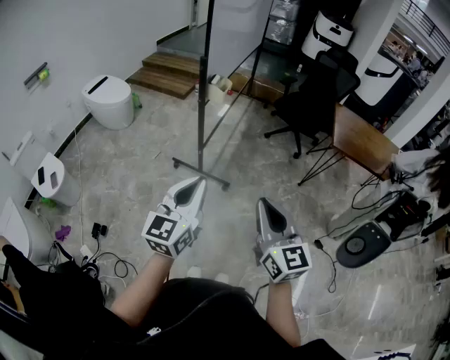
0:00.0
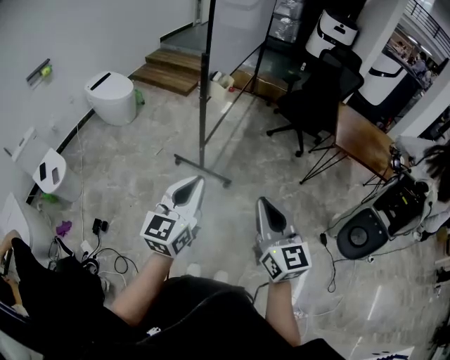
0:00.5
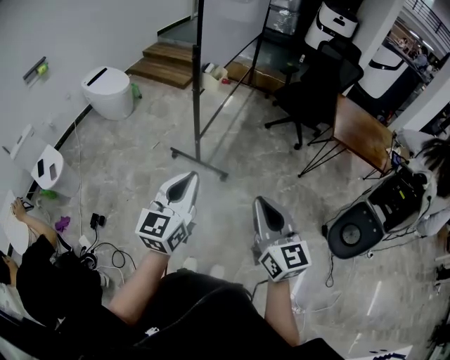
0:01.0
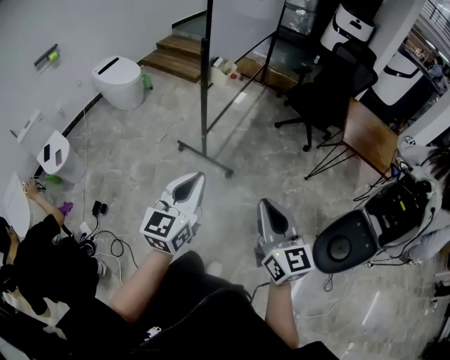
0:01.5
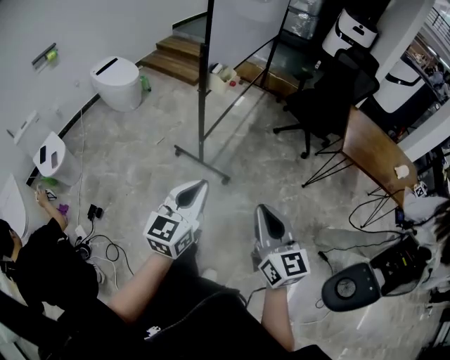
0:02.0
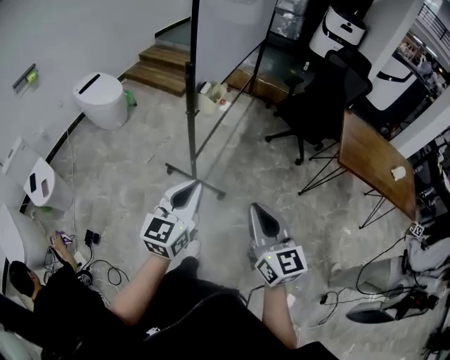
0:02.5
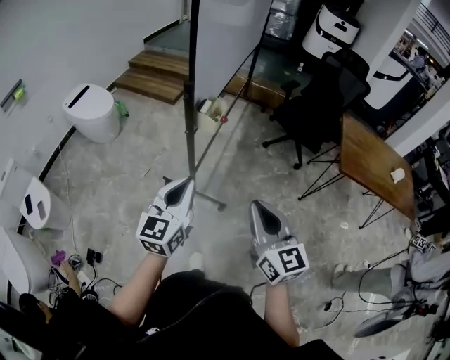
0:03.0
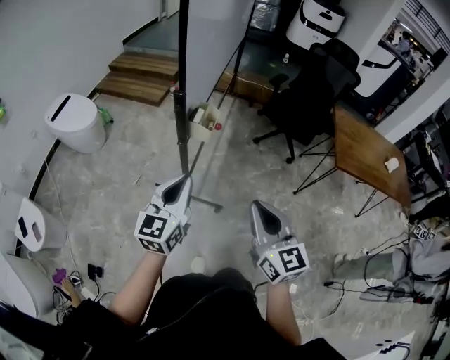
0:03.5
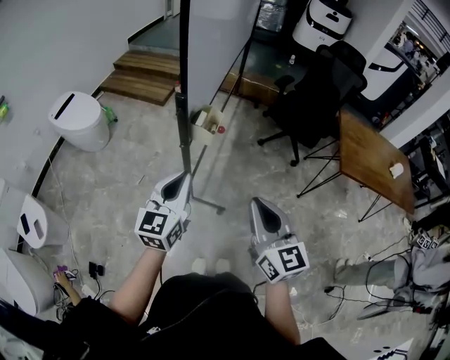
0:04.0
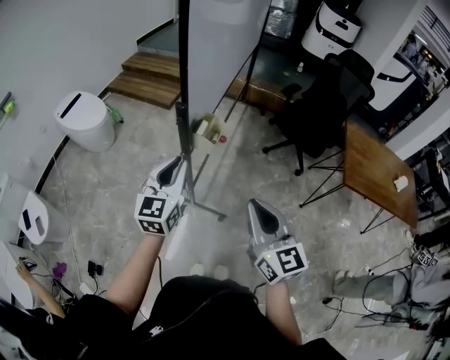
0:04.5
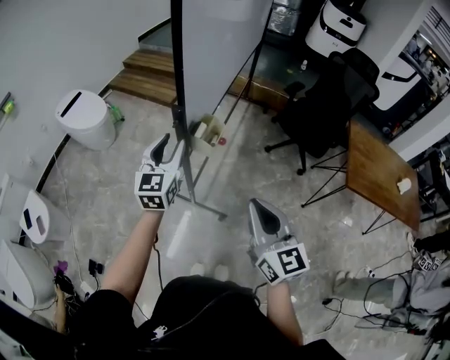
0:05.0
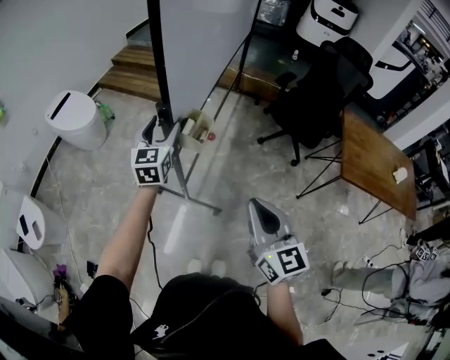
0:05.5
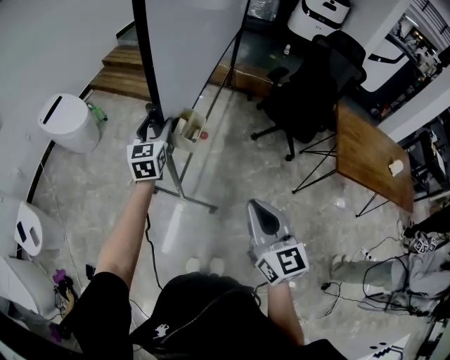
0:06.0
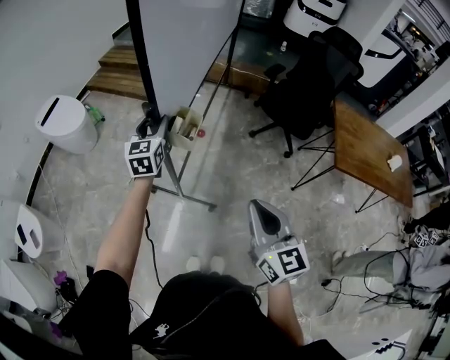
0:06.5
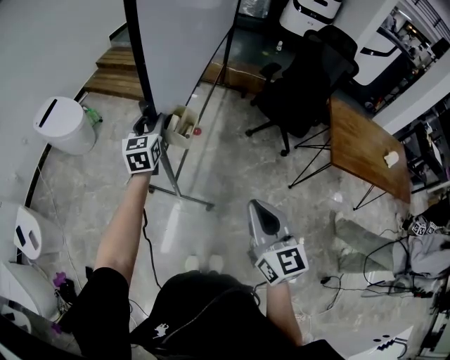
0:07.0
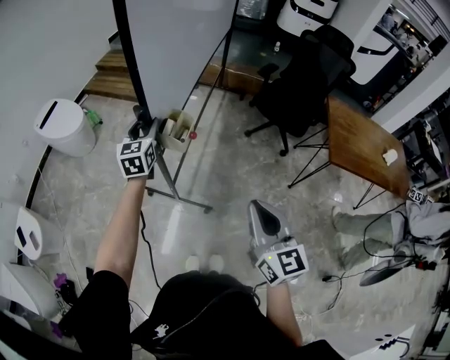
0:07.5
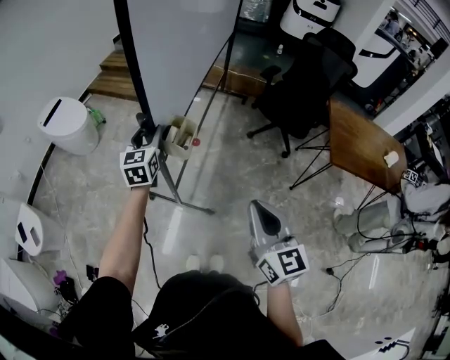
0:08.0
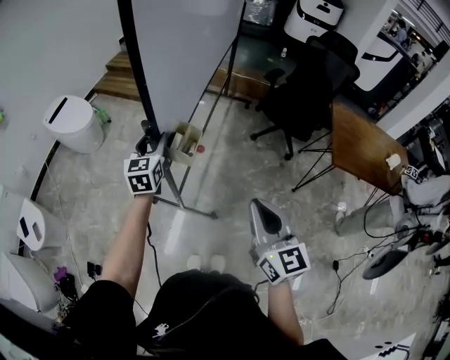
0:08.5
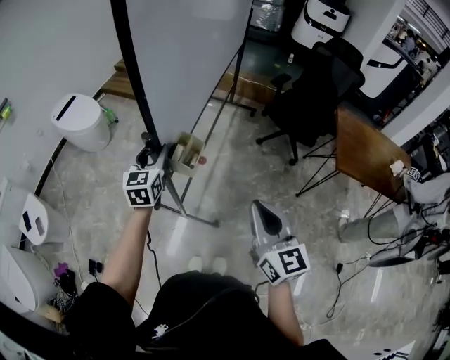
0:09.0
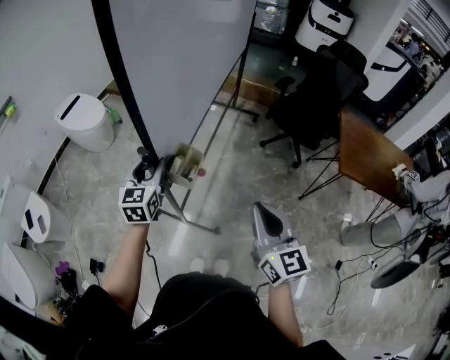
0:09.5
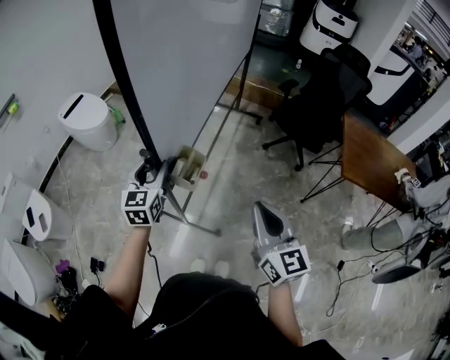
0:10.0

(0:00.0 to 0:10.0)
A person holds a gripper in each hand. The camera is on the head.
0:00.0 - 0:02.0: The grippers both shift to the right by about 5 cm.
0:02.0 - 0:04.0: Both grippers travel together forward, some 30 cm.
0:04.0 - 0:06.0: The left gripper moves forward, approximately 25 cm, and opens its fingers; the right gripper goes approximately 5 cm forward.
0:06.0 - 0:08.0: Both grippers travel together backward, about 5 cm.
0:08.0 - 0:10.0: The left gripper goes about 15 cm backward.

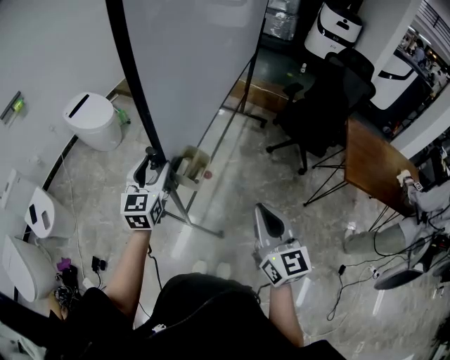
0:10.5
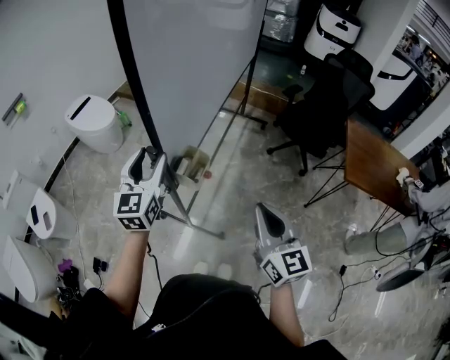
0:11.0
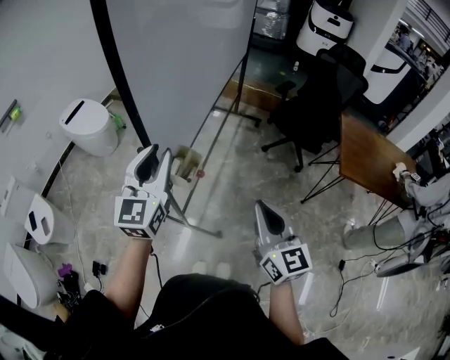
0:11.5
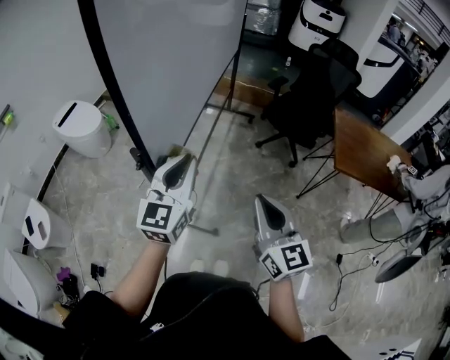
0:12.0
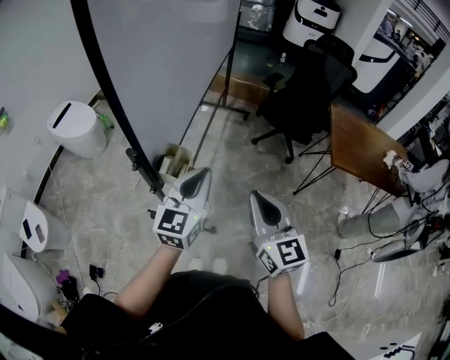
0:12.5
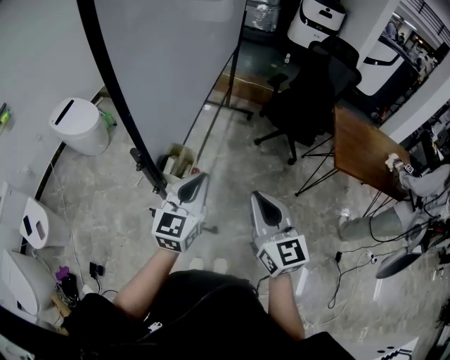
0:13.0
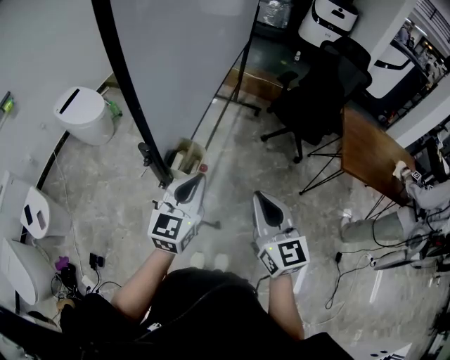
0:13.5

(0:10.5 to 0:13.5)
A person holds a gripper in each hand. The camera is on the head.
0:10.5 - 0:12.0: The left gripper shifts about 15 cm to the right and upward, and closes up.
0:12.0 - 0:13.5: The left gripper goes approximately 5 cm downward.

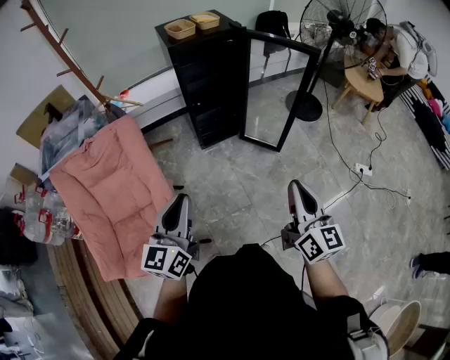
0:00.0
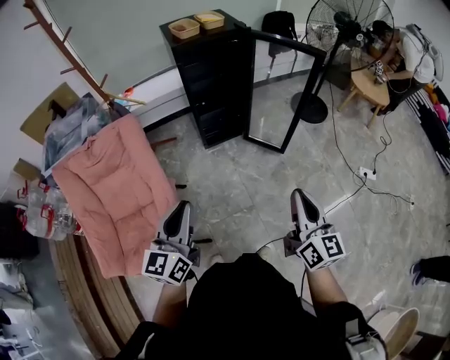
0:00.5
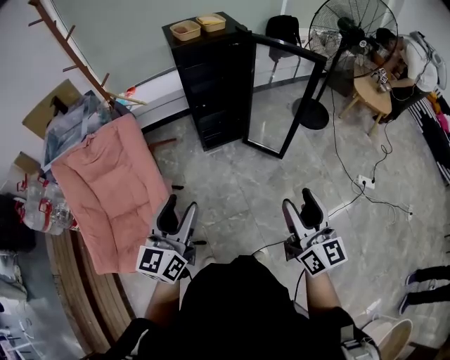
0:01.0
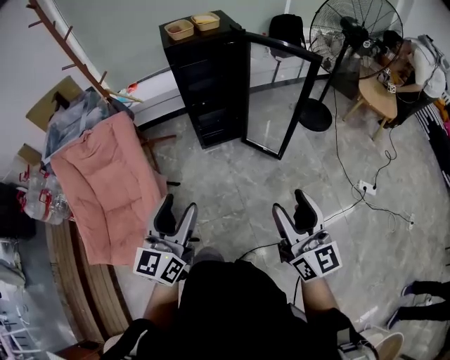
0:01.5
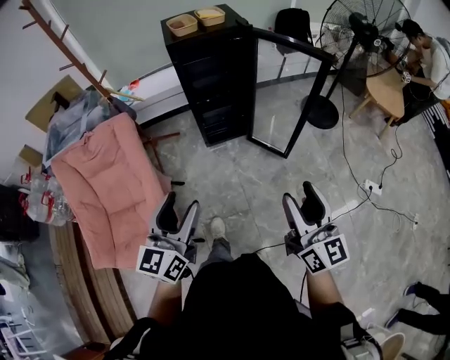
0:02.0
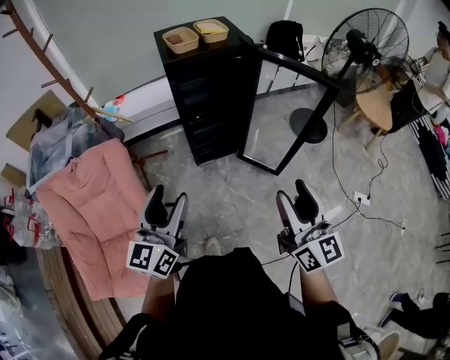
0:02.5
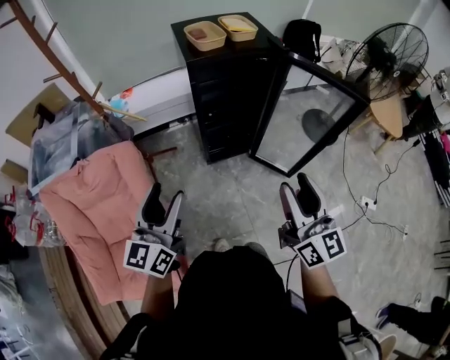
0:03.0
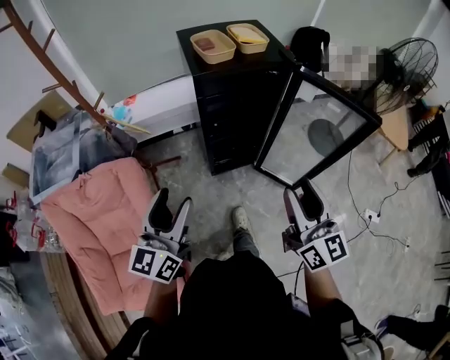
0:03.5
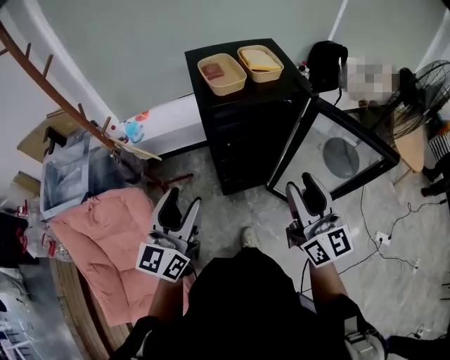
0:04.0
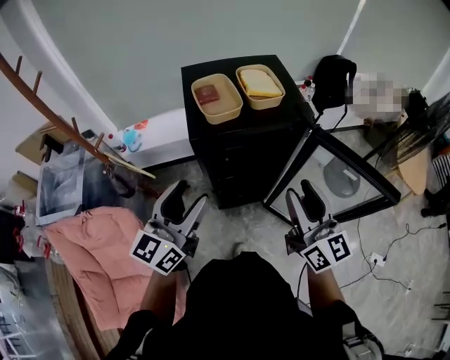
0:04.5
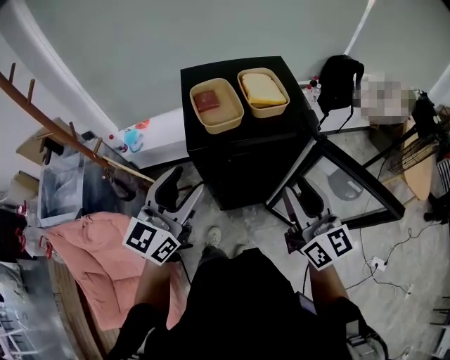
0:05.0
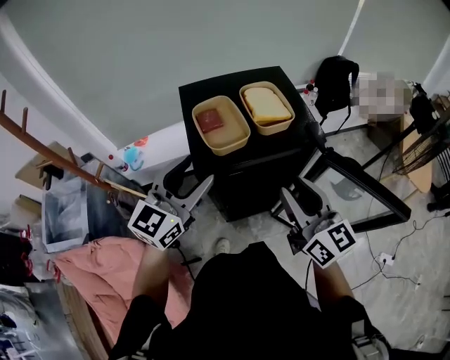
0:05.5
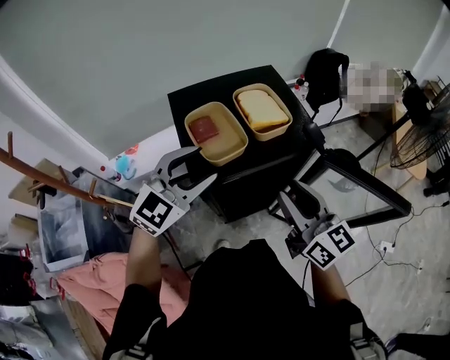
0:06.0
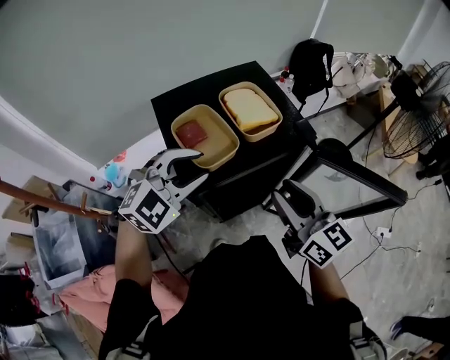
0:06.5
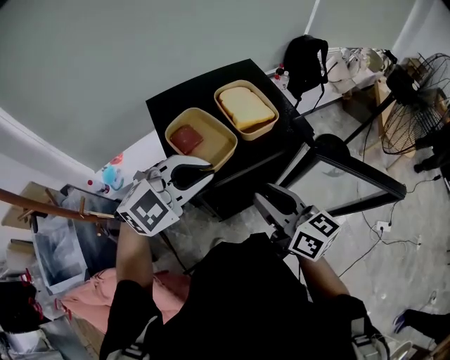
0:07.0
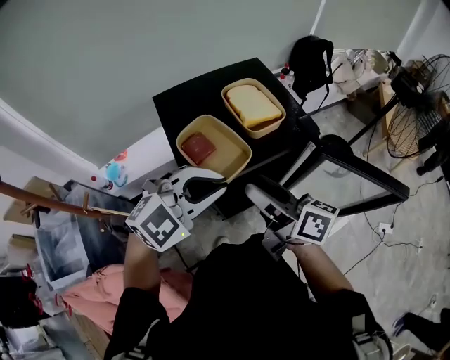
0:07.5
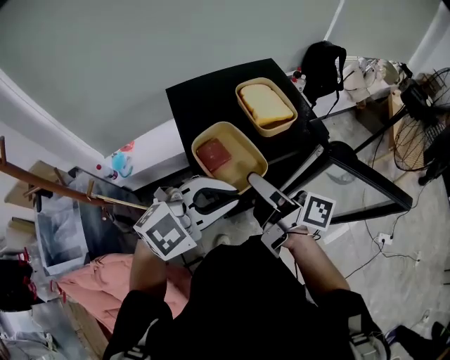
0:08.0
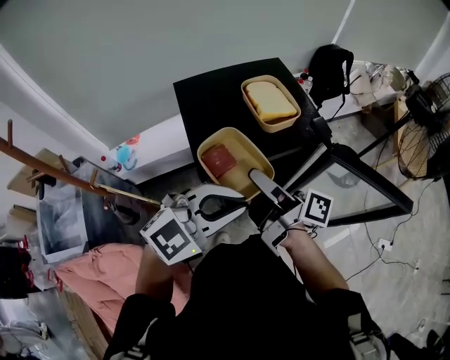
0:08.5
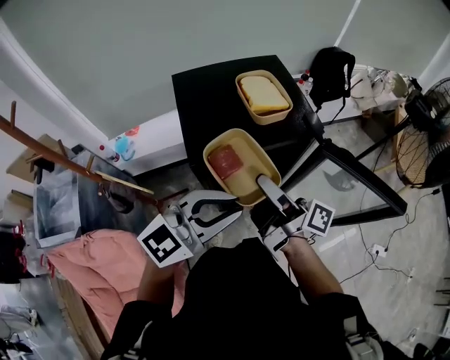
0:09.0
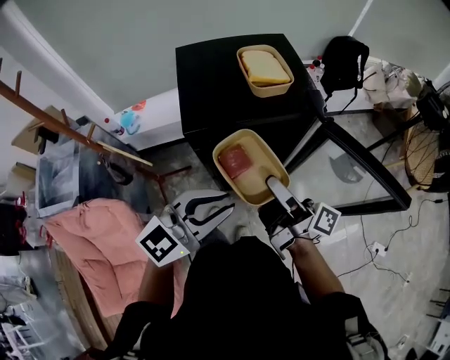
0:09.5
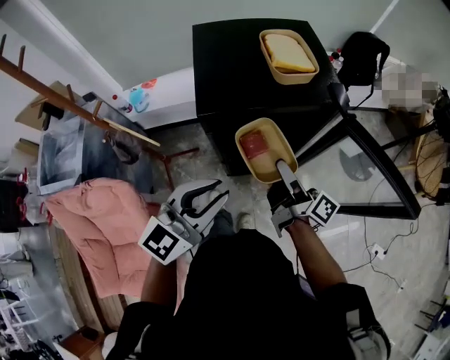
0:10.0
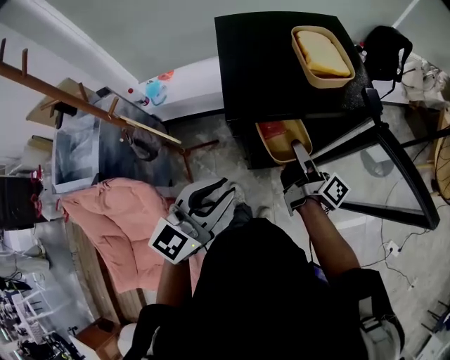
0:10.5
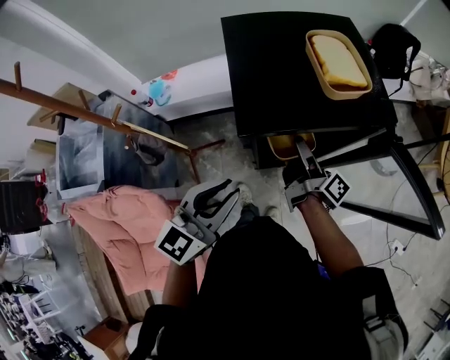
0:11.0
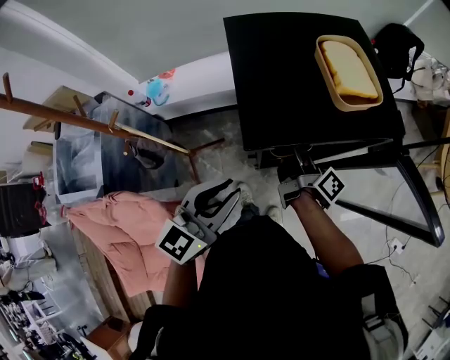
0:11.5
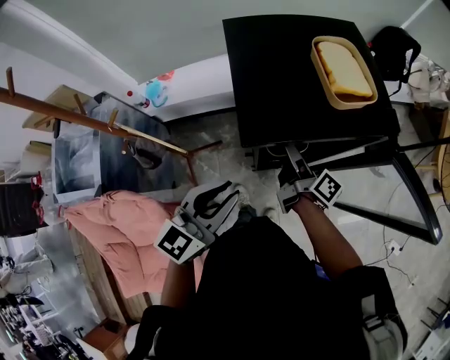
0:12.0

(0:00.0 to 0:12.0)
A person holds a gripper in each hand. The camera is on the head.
0:00.0 - 0:02.0: The two grippers go approximately 5 cm to the right. The left gripper opens its fingers. Meanwhile the right gripper opens.
0:02.0 - 0:04.0: The two grippers go roughly 35 cm forward.
0:04.0 - 0:06.0: The right gripper moves forward, about 20 cm. The left gripper goes some 30 cm forward, and rotates about 50 degrees.
0:06.0 - 0:08.0: The right gripper travels to the left by some 10 cm, rolls clockwise, seen from behind, by about 50 degrees, and opens up. The left gripper goes about 10 cm backward and to the right, rotates approximately 20 degrees, and closes its fingers.
0:08.0 - 0:10.0: The right gripper heads downward and to the right, covering about 15 cm, while the left gripper moves backward, some 10 cm, and swivels roughly 50 degrees.
0:10.0 - 0:12.0: The right gripper is displaced forward, to the left and downward by approximately 15 cm; the left gripper heads to the left and forward, covering about 10 cm.

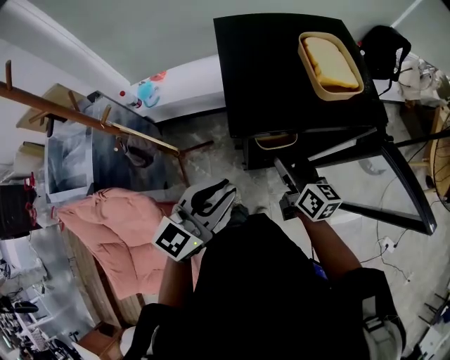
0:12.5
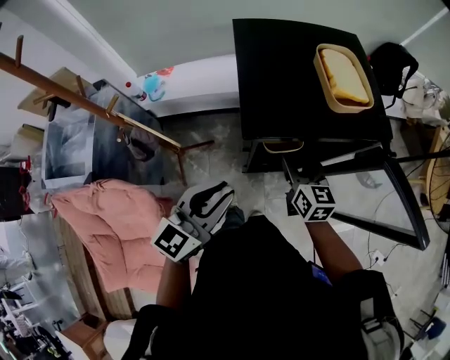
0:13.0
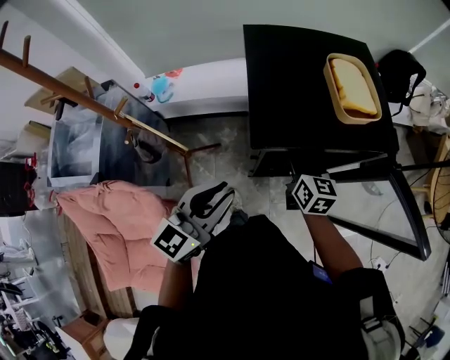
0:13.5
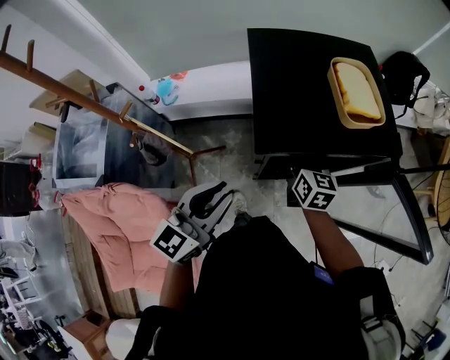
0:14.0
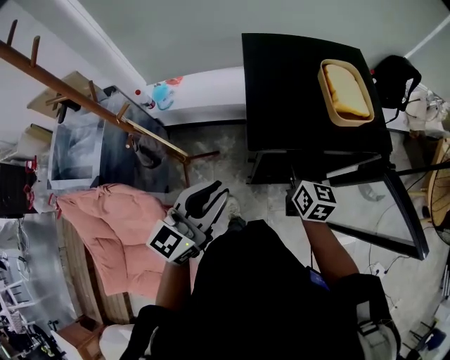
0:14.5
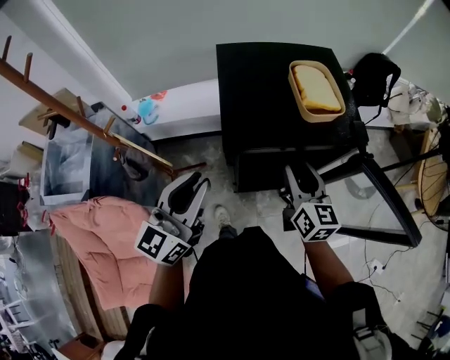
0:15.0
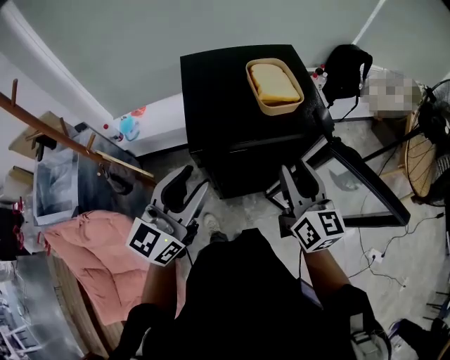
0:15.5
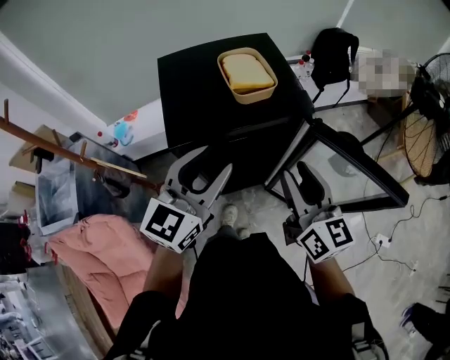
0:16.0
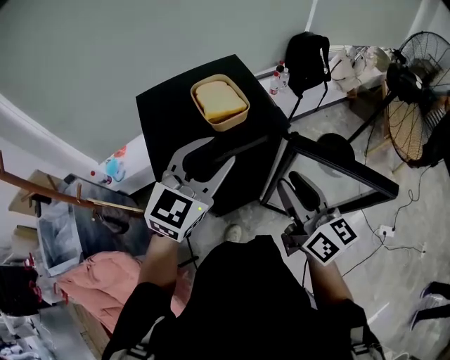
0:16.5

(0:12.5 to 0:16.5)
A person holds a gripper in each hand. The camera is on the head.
0:12.5 - 0:14.5: The right gripper moves forward, approximately 5 cm, and changes its angle by approximately 20 degrees.
0:14.5 - 0:16.5: The left gripper shifts some 25 cm to the right, forward and upward, and rotates about 40 degrees; the right gripper moves upward, to the right and backward, roughly 25 cm, and turns by some 20 degrees.
